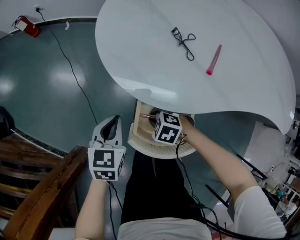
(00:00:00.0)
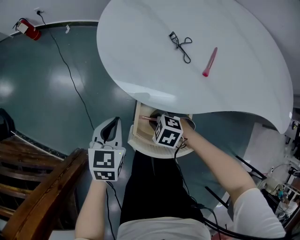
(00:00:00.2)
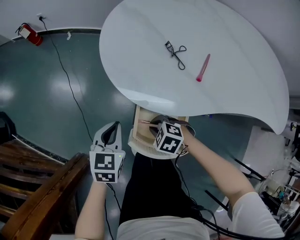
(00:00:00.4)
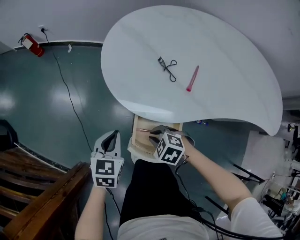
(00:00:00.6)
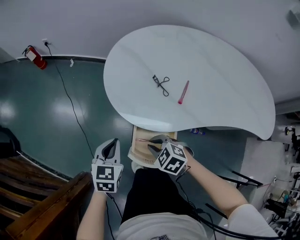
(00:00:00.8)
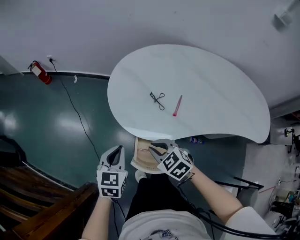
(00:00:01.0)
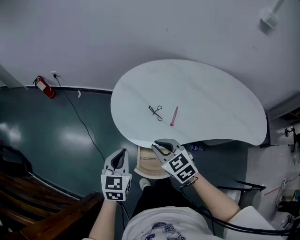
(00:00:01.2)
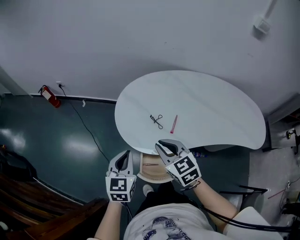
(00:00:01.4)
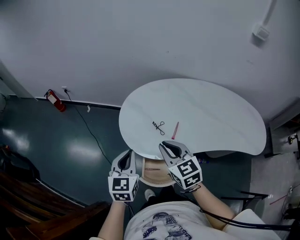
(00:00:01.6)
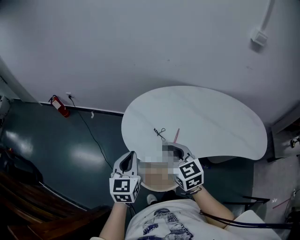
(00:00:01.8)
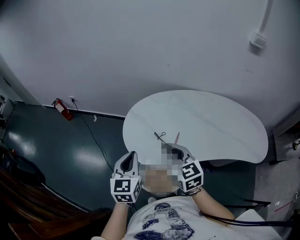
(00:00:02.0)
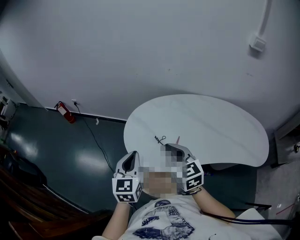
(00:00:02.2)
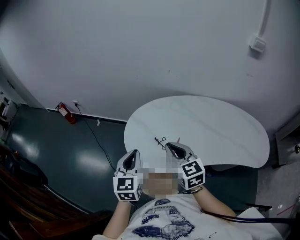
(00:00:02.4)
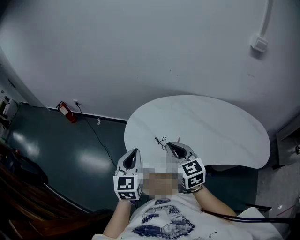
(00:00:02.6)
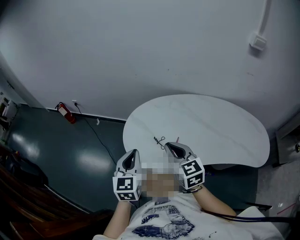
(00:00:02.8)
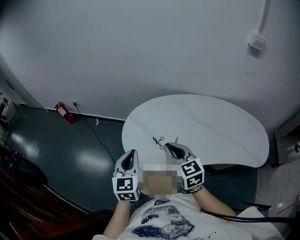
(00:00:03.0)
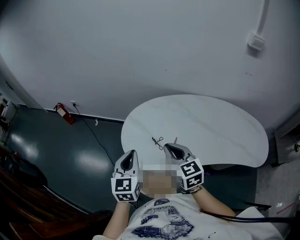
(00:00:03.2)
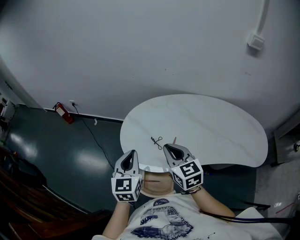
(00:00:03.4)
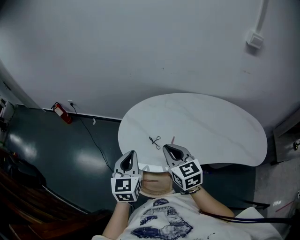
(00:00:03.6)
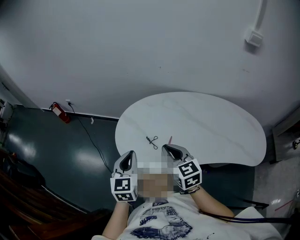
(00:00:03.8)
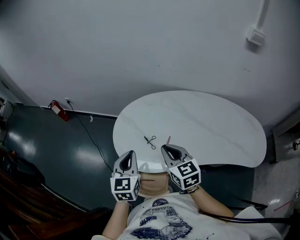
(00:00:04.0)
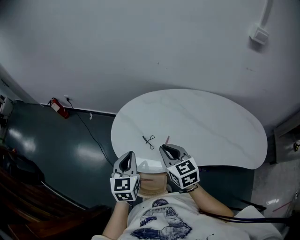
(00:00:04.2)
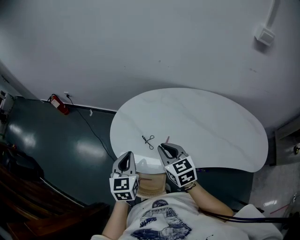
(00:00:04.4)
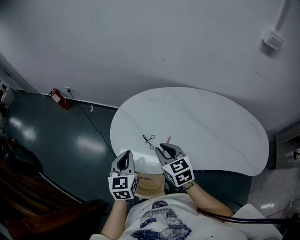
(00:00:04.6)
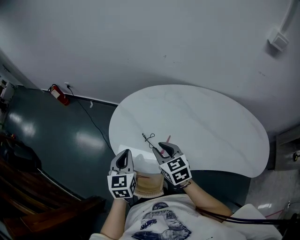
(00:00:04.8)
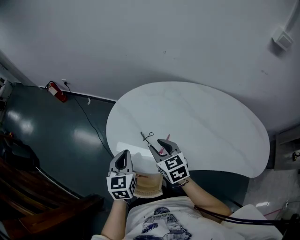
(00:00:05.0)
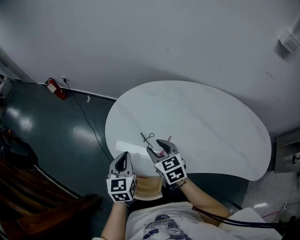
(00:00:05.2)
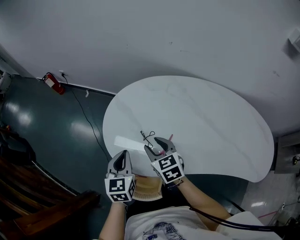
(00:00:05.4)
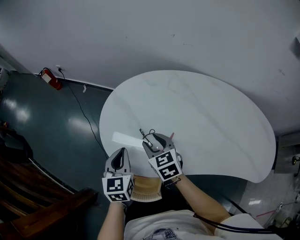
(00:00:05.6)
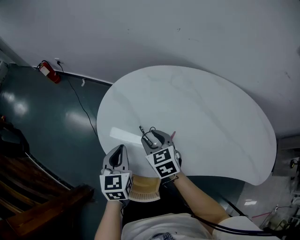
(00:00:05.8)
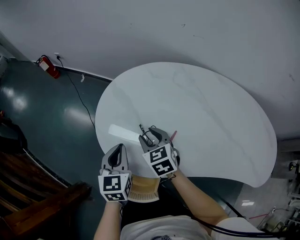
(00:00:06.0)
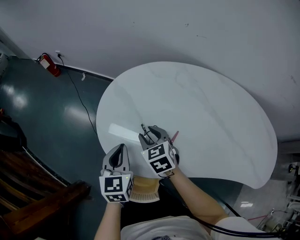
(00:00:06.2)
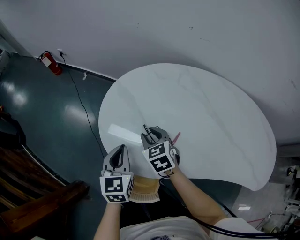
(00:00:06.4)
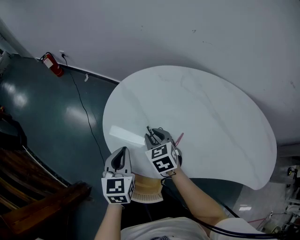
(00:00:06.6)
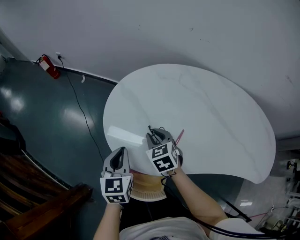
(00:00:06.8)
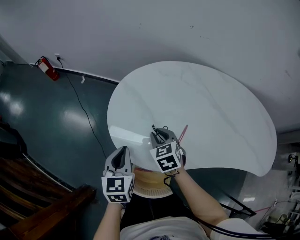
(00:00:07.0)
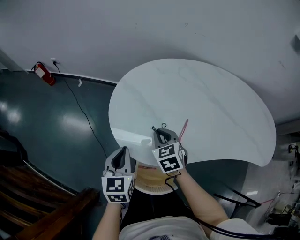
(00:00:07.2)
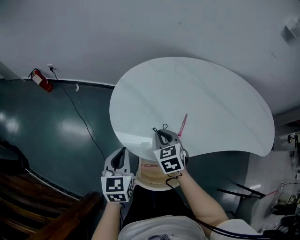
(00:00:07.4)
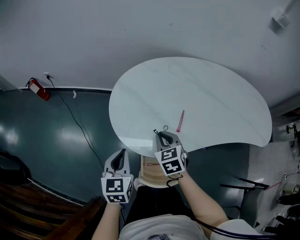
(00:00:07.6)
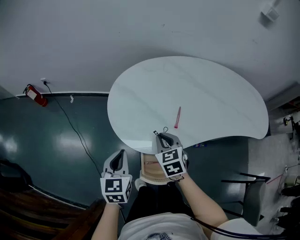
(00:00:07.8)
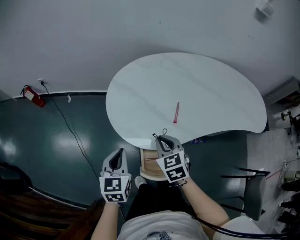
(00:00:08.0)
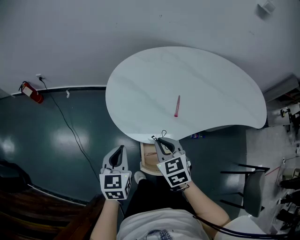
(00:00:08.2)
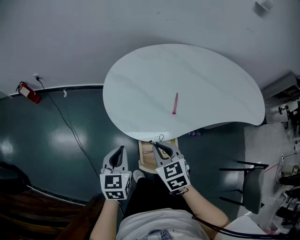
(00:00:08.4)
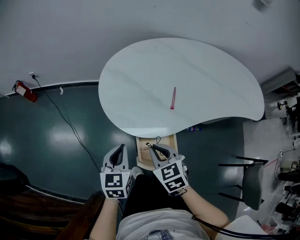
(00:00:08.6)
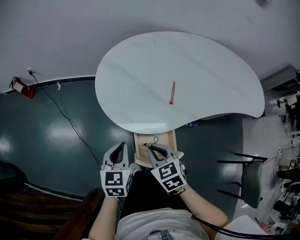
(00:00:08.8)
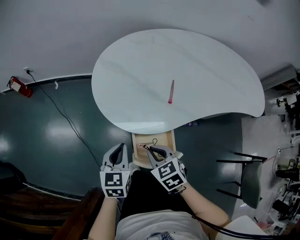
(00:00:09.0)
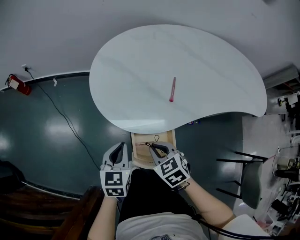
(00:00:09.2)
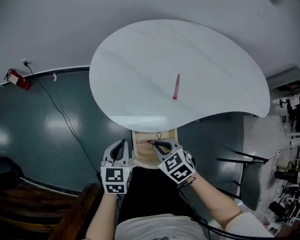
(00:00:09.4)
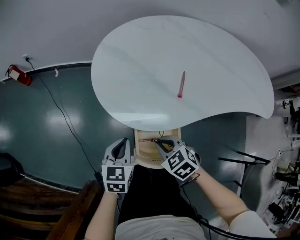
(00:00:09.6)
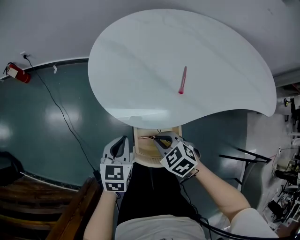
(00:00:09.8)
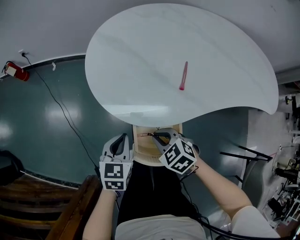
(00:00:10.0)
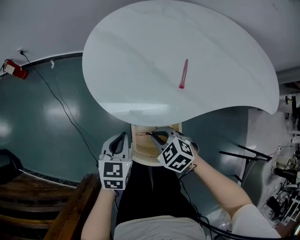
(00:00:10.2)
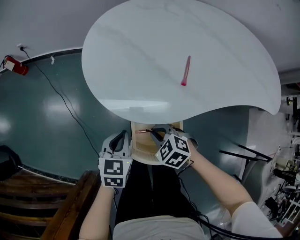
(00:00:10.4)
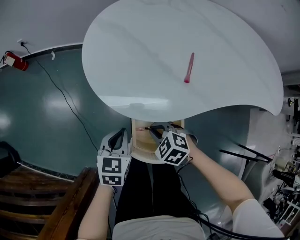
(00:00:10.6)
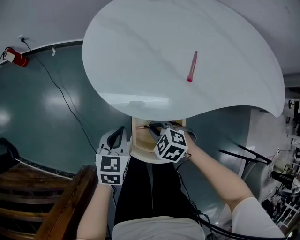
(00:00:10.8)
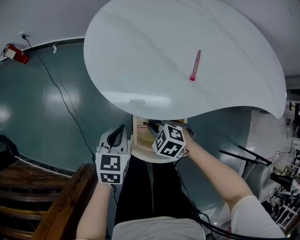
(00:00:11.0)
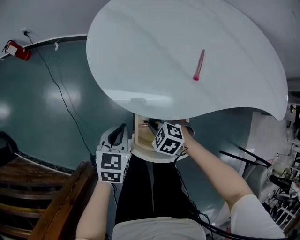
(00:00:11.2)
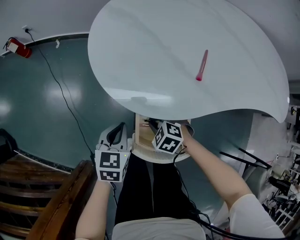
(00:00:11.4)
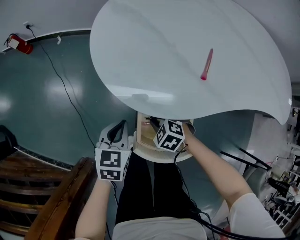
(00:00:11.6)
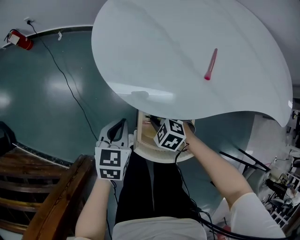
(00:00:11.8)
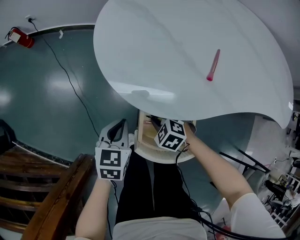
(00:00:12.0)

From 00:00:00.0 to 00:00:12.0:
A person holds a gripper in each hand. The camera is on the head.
From 00:00:00.0 to 00:00:01.6: Both grippers travel together upward, roughly 40 cm. The right gripper angles its fingers upward, by about 40 degrees, while the left gripper turns by approximately 20 degrees.
From 00:00:01.6 to 00:00:03.0: The right gripper shifts some 5 cm to the right and upward. The left gripper is displaced upward by approximately 5 cm.
From 00:00:03.0 to 00:00:04.4: The grippers both shift downward by roughly 5 cm.
From 00:00:04.4 to 00:00:06.0: The right gripper goes roughly 20 cm downward and forward, and opens its fingers; the left gripper travels downward by some 15 cm.
From 00:00:06.0 to 00:00:07.6: The left gripper shifts approximately 10 cm to the left and backward; the right gripper is displaced backward by some 5 cm, changes its angle by some 20 degrees, and closes up.
From 00:00:07.6 to 00:00:09.0: The right gripper travels backward by approximately 15 cm. Meanwhile the left gripper goes approximately 10 cm downward and backward.
From 00:00:09.0 to 00:00:10.4: Both grippers move downward, some 10 cm. The right gripper turns by roughly 30 degrees.
From 00:00:10.4 to 00:00:12.0: The right gripper goes some 10 cm downward.

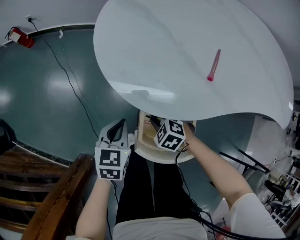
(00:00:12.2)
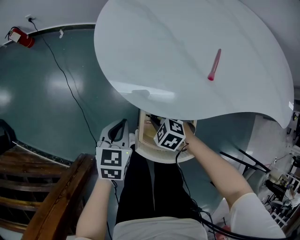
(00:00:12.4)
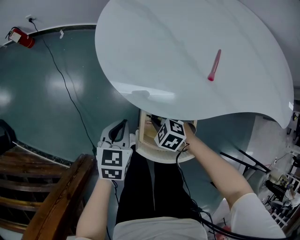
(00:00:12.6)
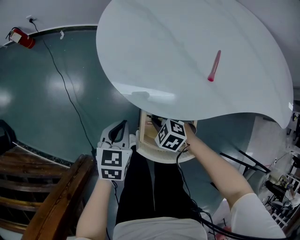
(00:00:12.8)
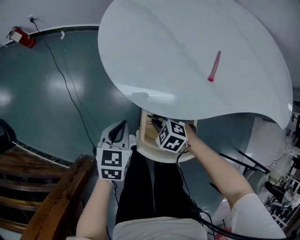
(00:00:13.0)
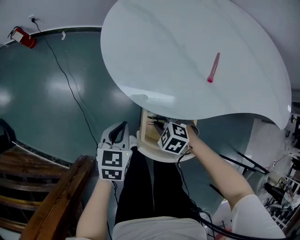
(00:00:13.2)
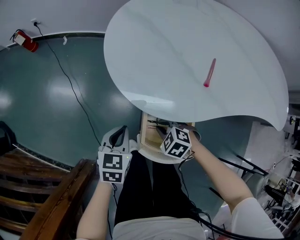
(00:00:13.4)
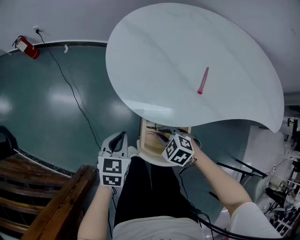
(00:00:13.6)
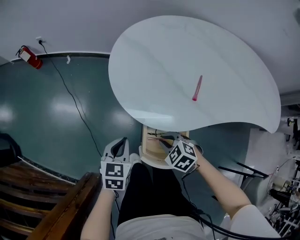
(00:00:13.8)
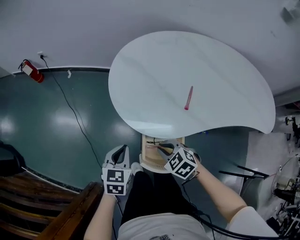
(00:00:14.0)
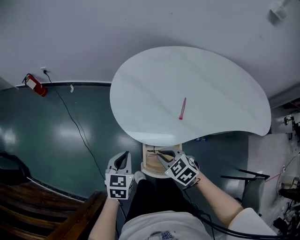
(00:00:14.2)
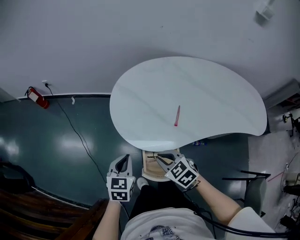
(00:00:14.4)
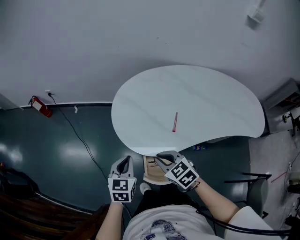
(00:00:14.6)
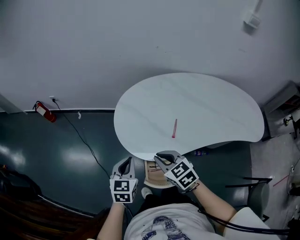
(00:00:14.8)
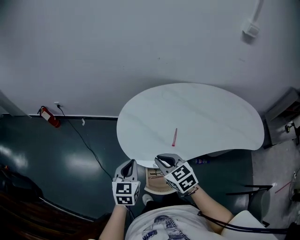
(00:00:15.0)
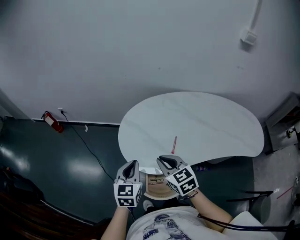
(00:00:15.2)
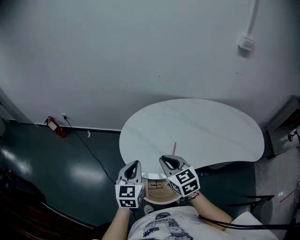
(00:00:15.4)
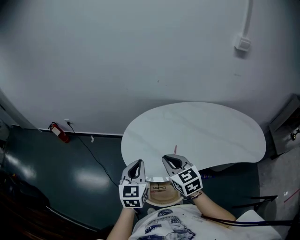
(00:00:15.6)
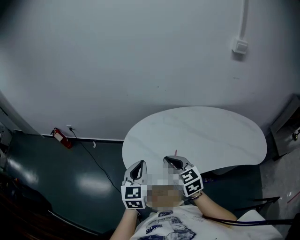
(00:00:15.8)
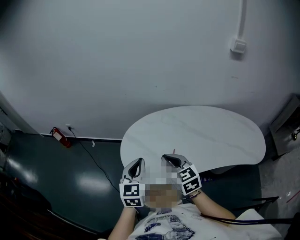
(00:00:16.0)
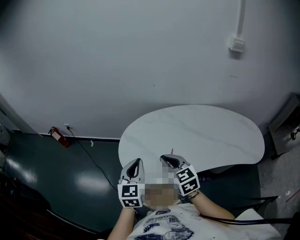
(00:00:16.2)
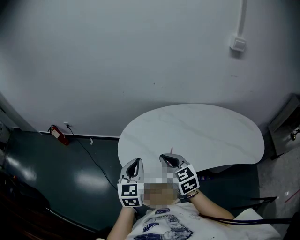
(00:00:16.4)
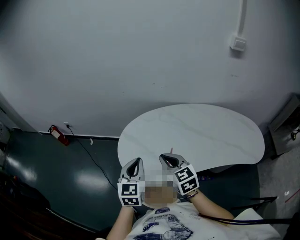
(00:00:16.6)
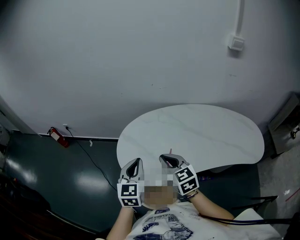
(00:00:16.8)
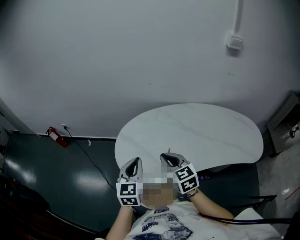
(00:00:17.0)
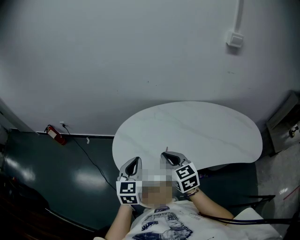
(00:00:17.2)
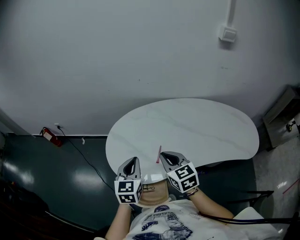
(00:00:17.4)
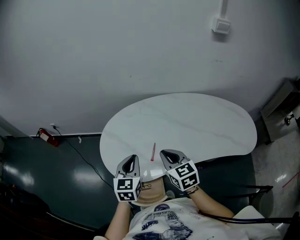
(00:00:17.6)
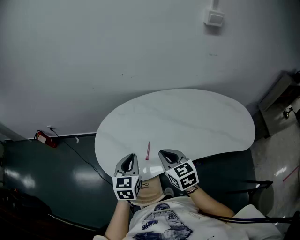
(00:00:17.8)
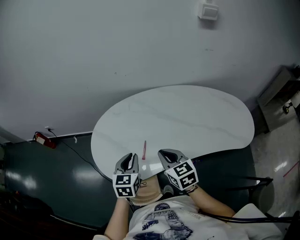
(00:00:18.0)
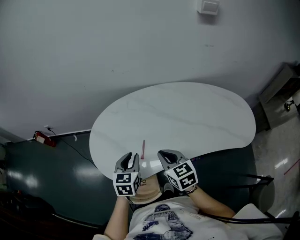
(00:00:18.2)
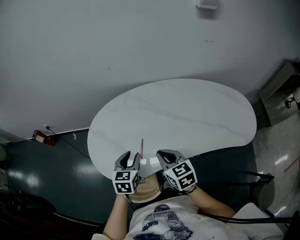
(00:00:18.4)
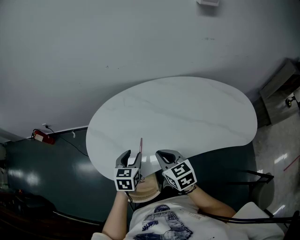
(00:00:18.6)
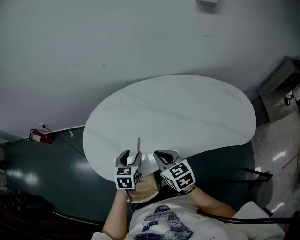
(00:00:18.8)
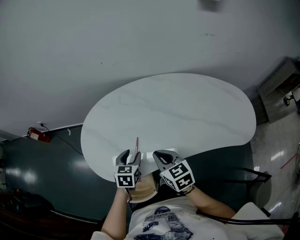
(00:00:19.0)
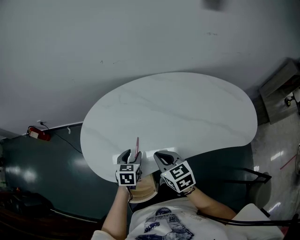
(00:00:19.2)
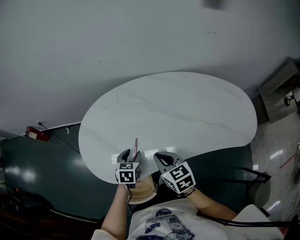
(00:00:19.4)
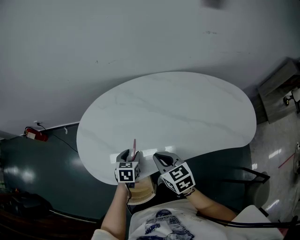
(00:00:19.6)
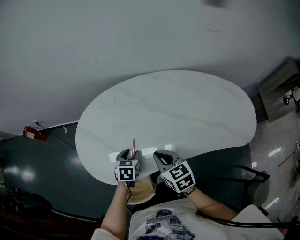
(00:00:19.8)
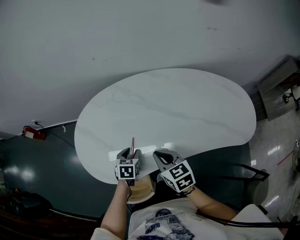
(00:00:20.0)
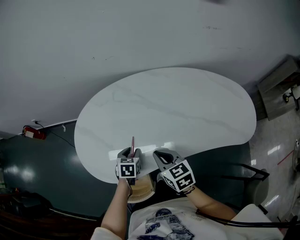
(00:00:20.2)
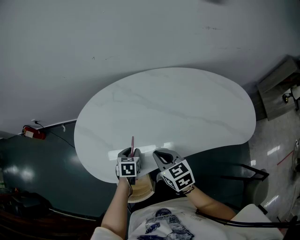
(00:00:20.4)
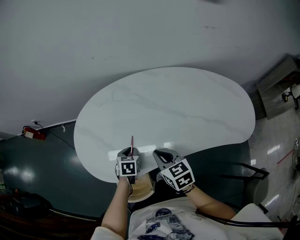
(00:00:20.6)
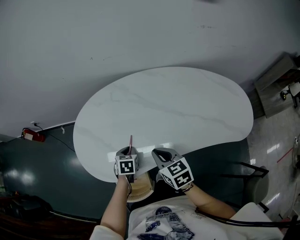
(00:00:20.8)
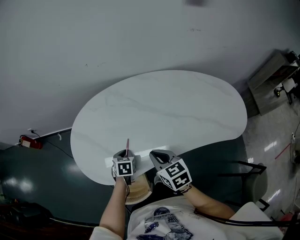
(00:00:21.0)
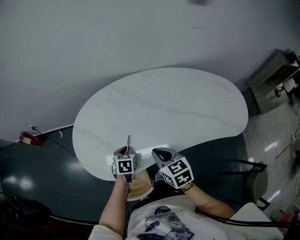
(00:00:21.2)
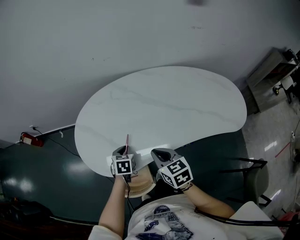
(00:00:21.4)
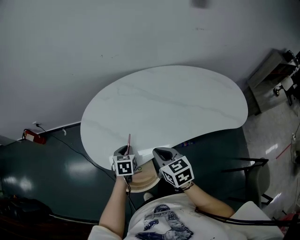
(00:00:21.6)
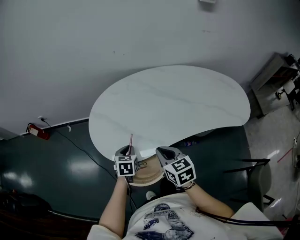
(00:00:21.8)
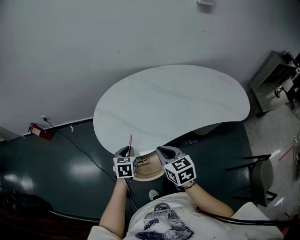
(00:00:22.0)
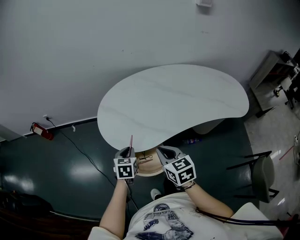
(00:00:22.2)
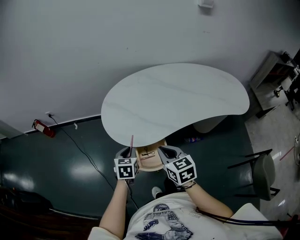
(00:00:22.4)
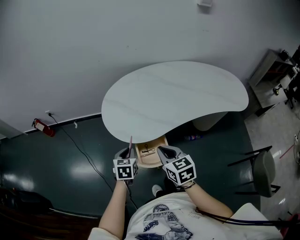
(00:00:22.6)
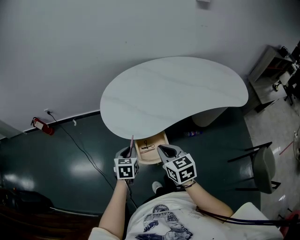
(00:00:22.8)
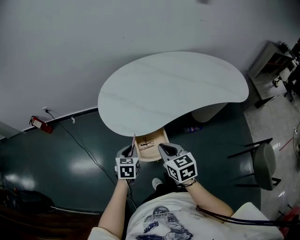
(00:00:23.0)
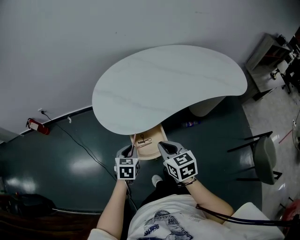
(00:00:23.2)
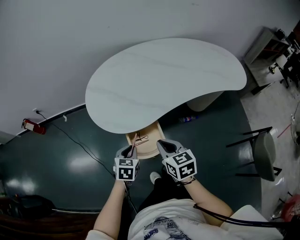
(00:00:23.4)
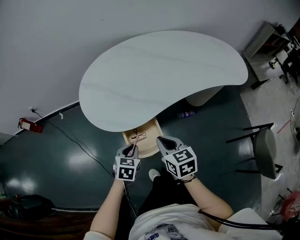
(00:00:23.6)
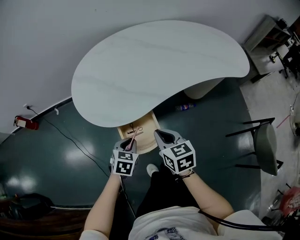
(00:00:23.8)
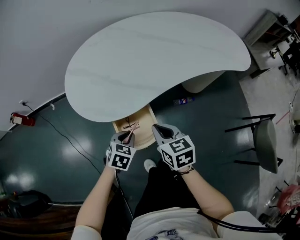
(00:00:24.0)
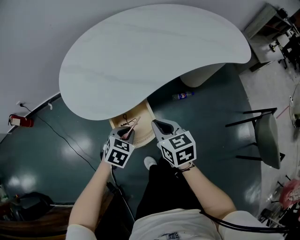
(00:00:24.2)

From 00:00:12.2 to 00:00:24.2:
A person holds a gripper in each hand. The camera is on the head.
From 00:00:12.2 to 00:00:13.8: The left gripper shifts about 5 cm upward, while the right gripper moves upward, some 10 cm.
From 00:00:13.8 to 00:00:15.2: Both grippers travel together upward, about 30 cm. The right gripper angles its fingers upward, by some 30 degrees.
From 00:00:15.2 to 00:00:16.6: Both grippers travel together upward and to the right, approximately 10 cm.
From 00:00:16.6 to 00:00:18.2: The grippers both shift to the right and downward by some 20 cm.
From 00:00:18.2 to 00:00:19.8: The left gripper is displaced downward by approximately 15 cm, turns by some 20 degrees, and opens, while the right gripper goes some 5 cm downward.
From 00:00:19.8 to 00:00:21.2: The left gripper closes.
From 00:00:21.2 to 00:00:22.6: The right gripper heads backward and to the left, covering approximately 25 cm; the left gripper moves to the left, backward and upward, approximately 30 cm.
From 00:00:22.6 to 00:00:24.2: The left gripper travels downward and to the right by approximately 20 cm, and rotates some 40 degrees. The right gripper moves downward, approximately 15 cm.
